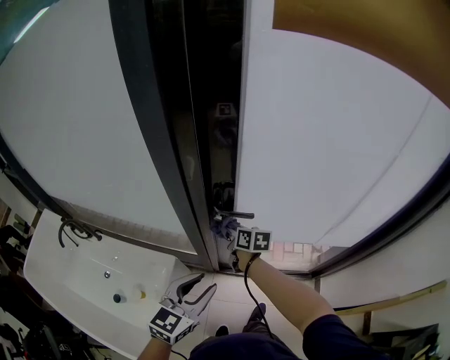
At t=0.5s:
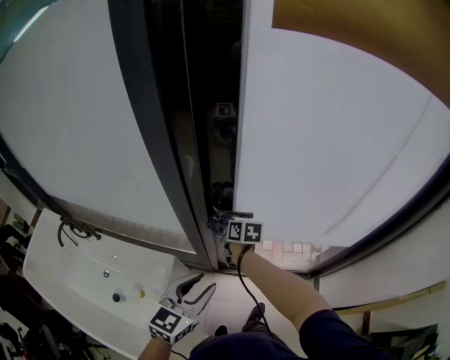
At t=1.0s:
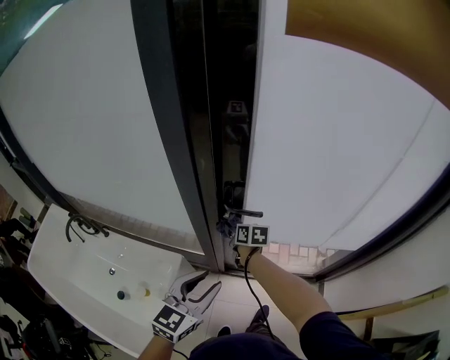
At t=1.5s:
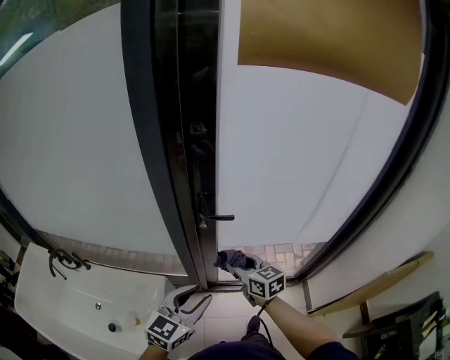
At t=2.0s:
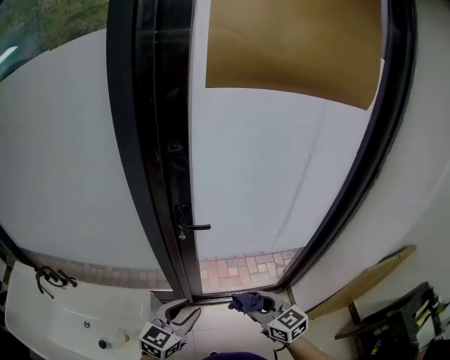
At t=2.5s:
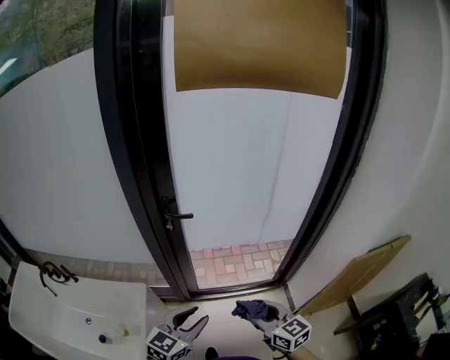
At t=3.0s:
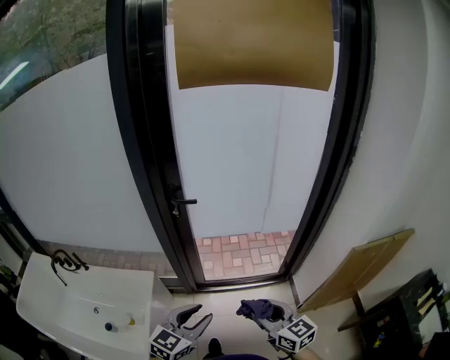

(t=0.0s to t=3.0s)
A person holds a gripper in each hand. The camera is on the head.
t=0.0s - t=1.5s: The left gripper heads backward, covering about 5 cm; the right gripper is displaced backward and upward by approximately 20 cm, and rotates approximately 30 degrees.
t=1.5s - t=3.0s: The left gripper goes about 25 cm backward and to the right. The right gripper moves backward and to the right, roughly 40 cm.

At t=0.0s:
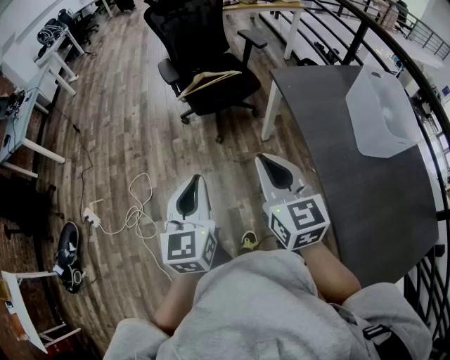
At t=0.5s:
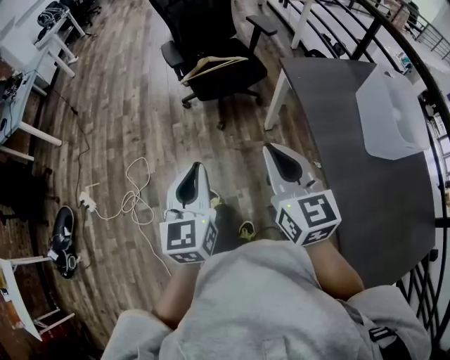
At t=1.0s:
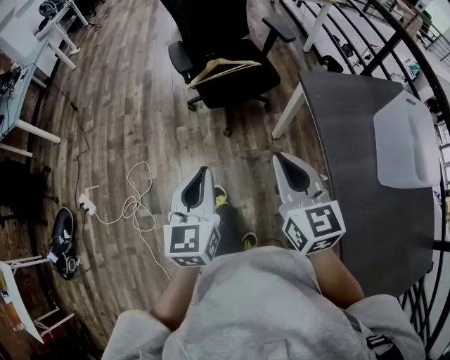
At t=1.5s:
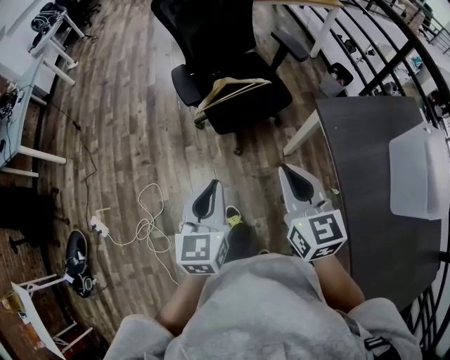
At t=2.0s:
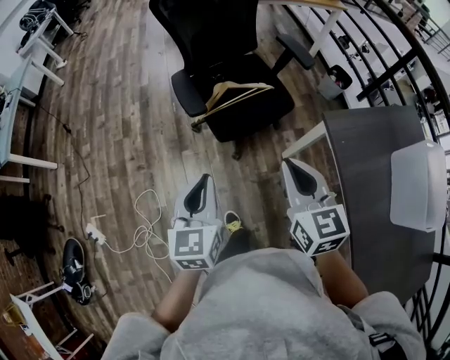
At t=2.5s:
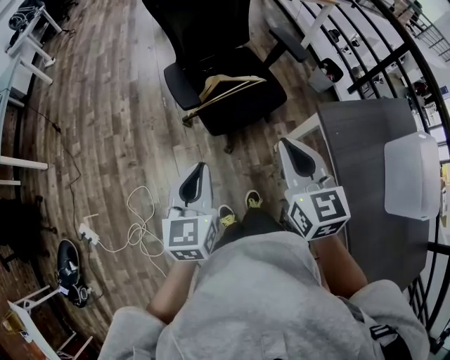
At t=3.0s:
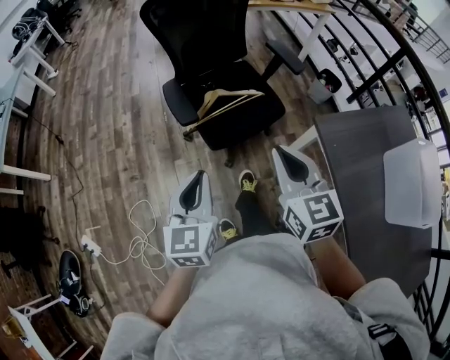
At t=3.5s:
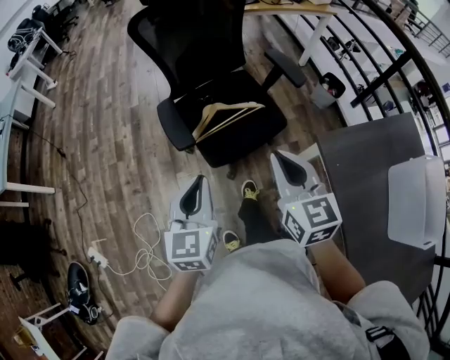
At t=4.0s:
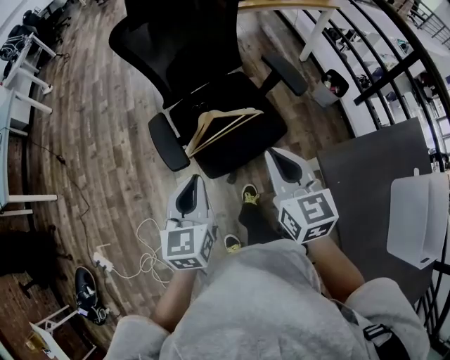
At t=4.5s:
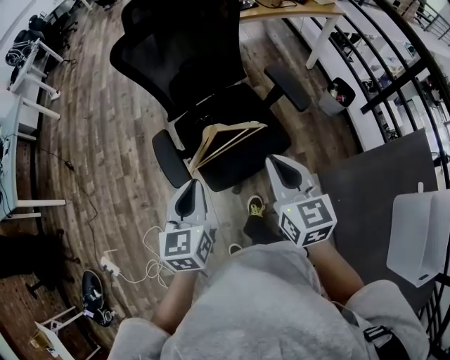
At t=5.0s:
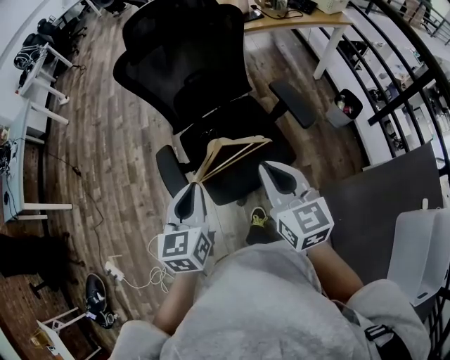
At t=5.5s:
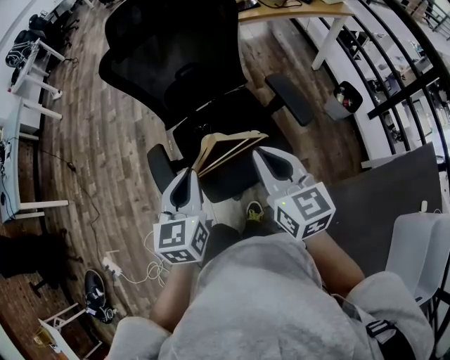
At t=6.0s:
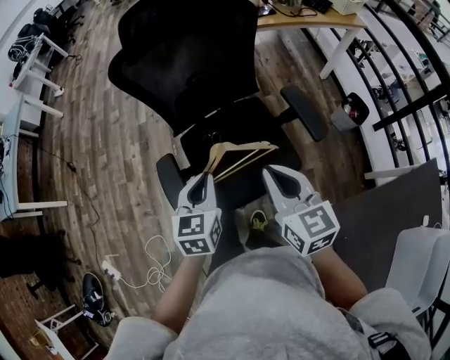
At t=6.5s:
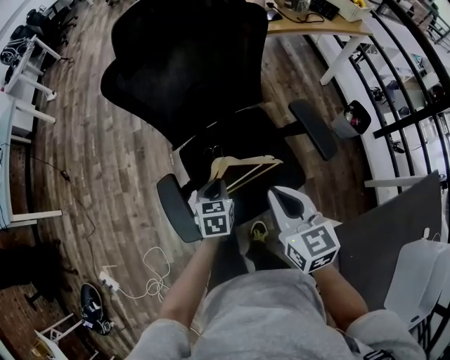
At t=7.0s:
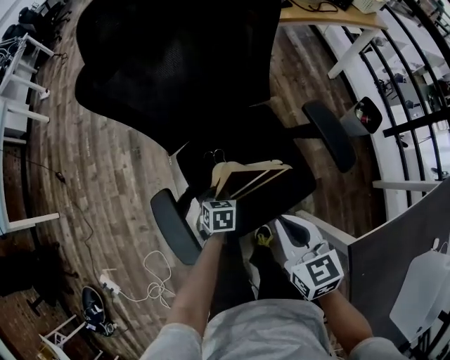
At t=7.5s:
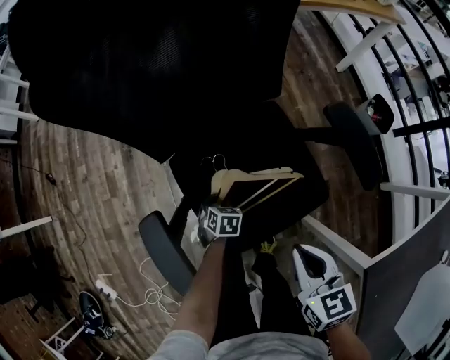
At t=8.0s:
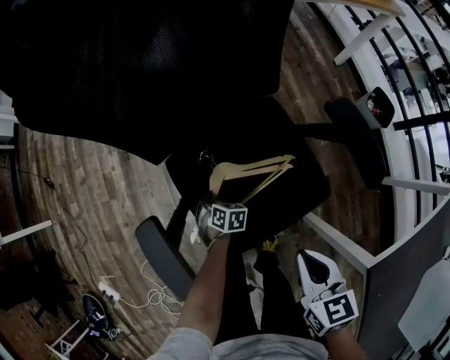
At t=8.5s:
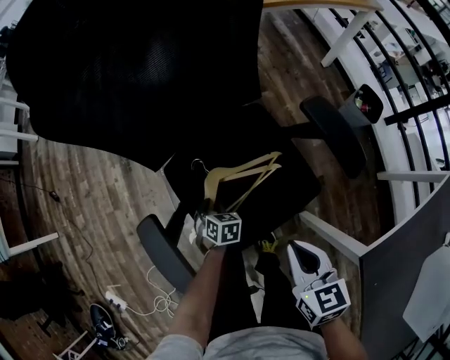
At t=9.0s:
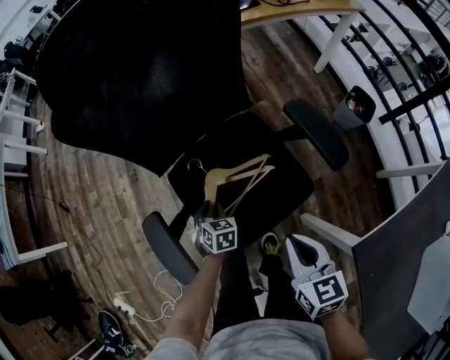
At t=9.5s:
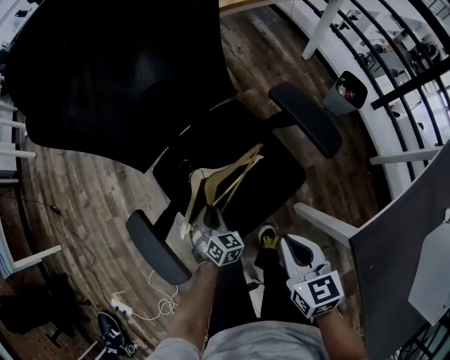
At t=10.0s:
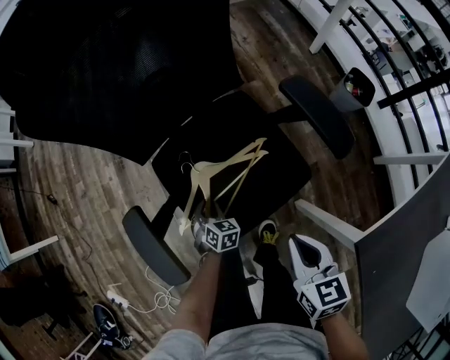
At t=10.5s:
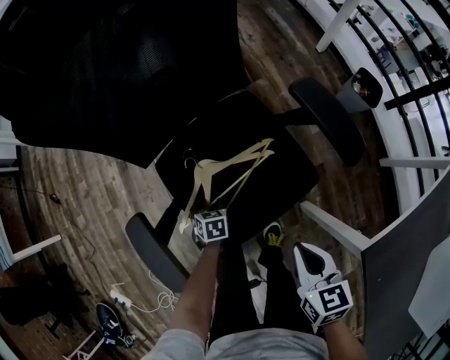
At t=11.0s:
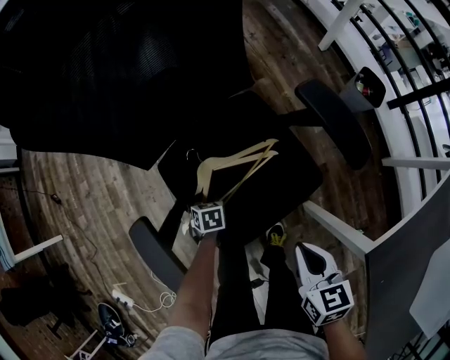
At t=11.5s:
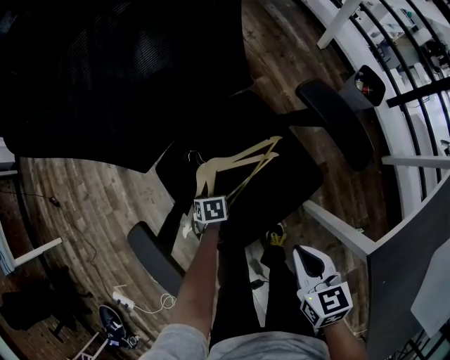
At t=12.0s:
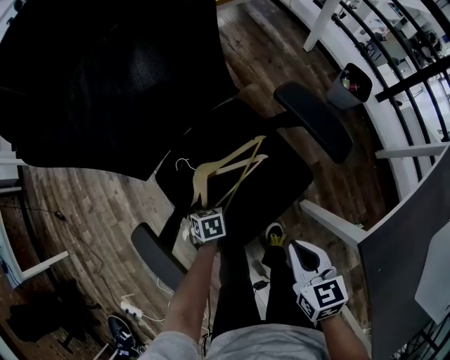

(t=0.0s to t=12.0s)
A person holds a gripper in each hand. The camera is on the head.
t=0.0s - t=2.0s: The grippers both shift forward by roughly 40 cm.
t=2.0s - t=4.0s: Both grippers move forward, approximately 20 cm.
t=4.0s - t=6.0s: Both grippers travel together forward, about 15 cm.
t=6.0s - t=8.0s: The left gripper moves downward, roughly 50 cm, and tips its fingers downward by approximately 40 degrees. Meanwhile the right gripper moves downward, about 25 cm, and swivels about 30 degrees.
t=8.0s - t=10.0s: The grippers both shift backward by about 5 cm. The left gripper travels upward and back again, some 15 cm each way.
t=10.0s - t=12.0s: The left gripper opens, then closes again.

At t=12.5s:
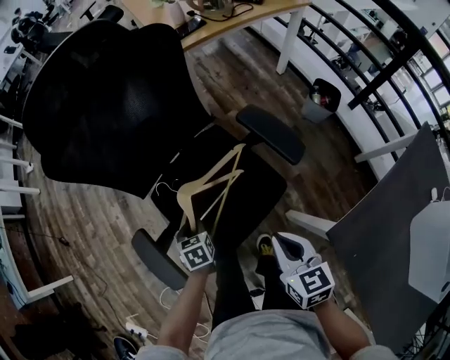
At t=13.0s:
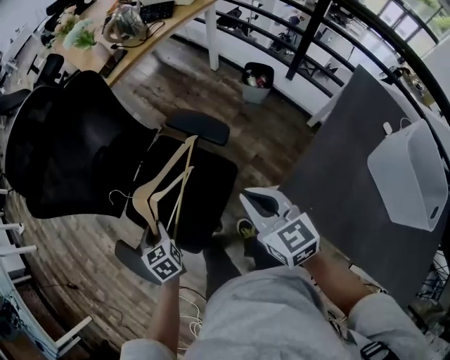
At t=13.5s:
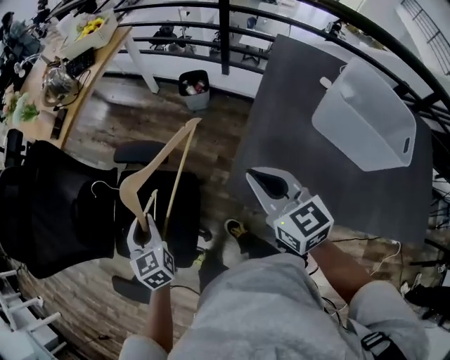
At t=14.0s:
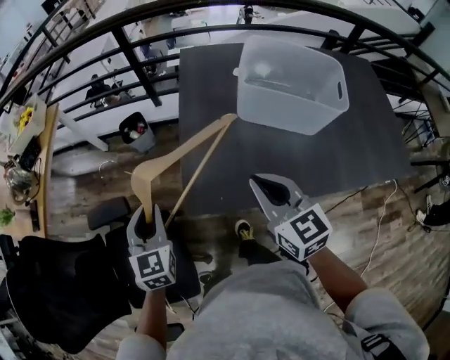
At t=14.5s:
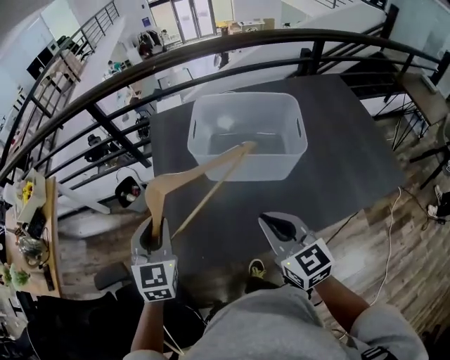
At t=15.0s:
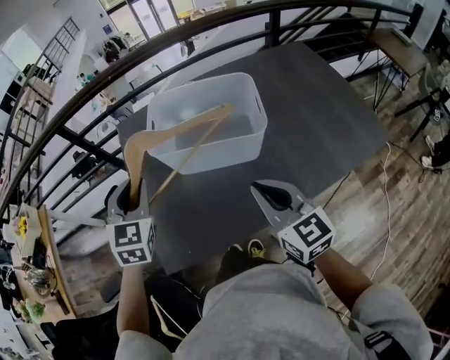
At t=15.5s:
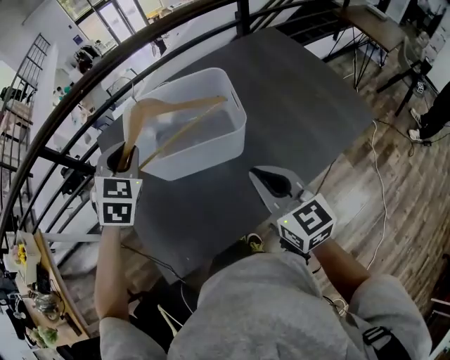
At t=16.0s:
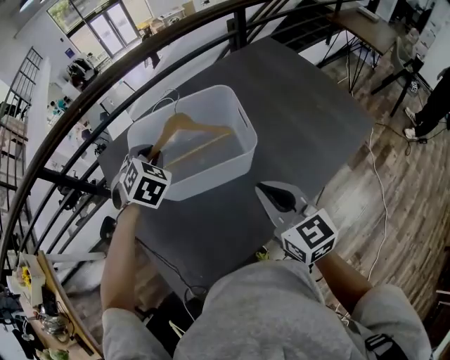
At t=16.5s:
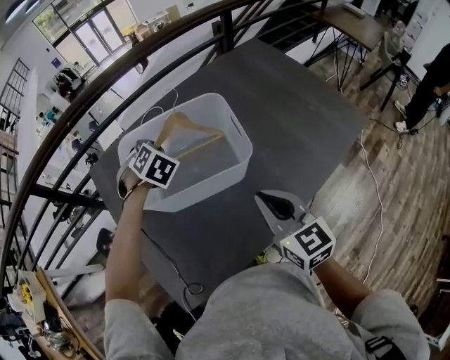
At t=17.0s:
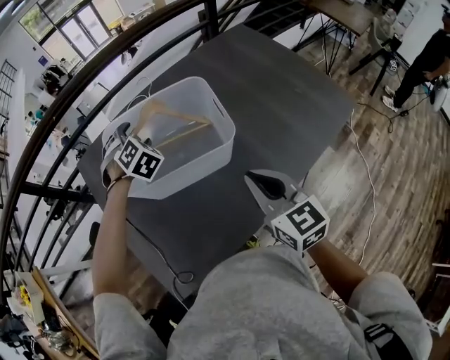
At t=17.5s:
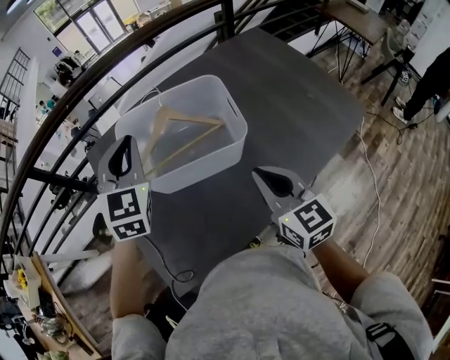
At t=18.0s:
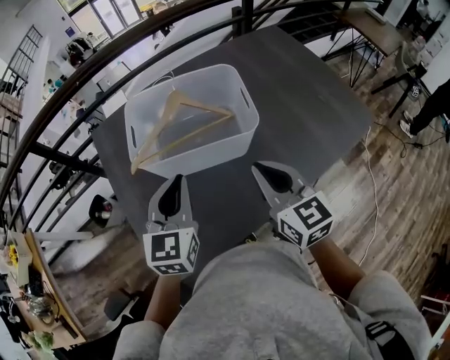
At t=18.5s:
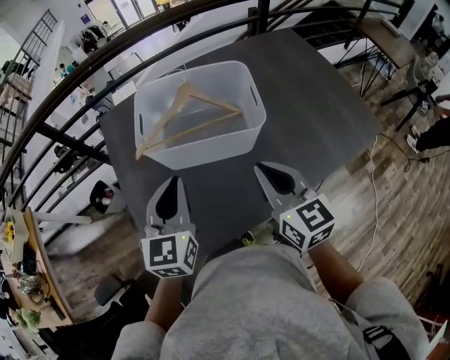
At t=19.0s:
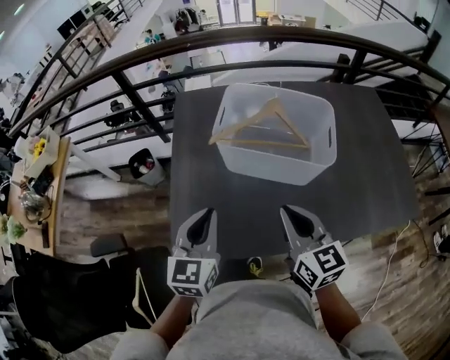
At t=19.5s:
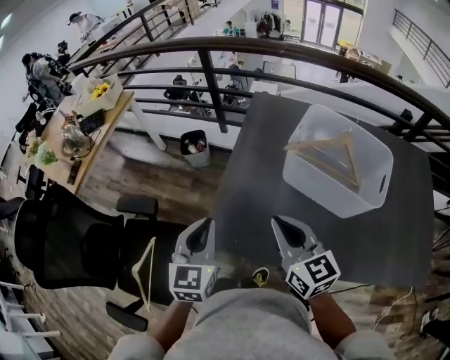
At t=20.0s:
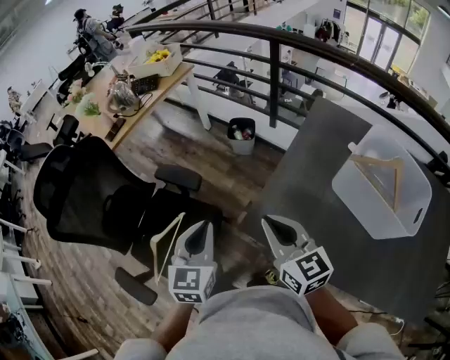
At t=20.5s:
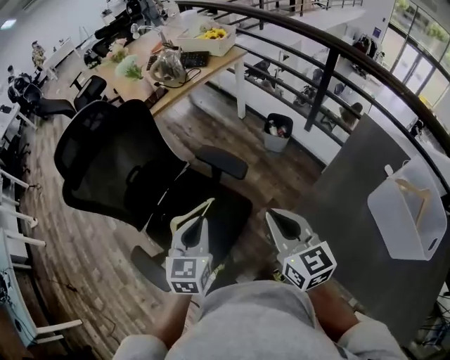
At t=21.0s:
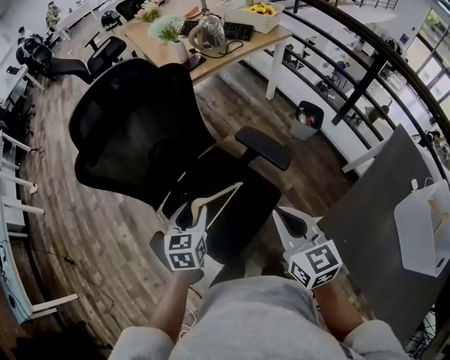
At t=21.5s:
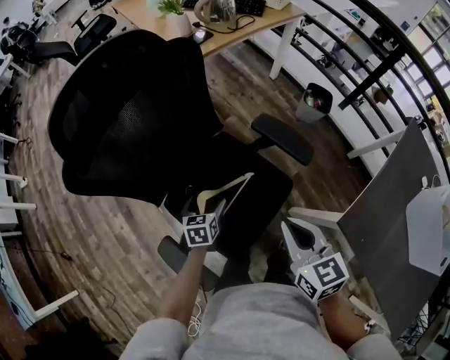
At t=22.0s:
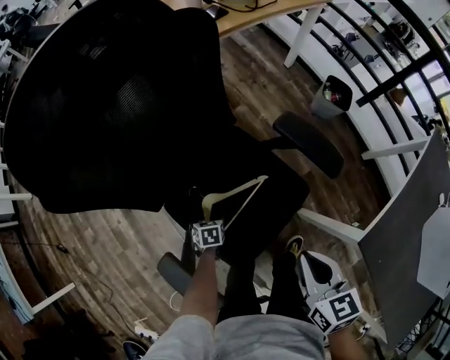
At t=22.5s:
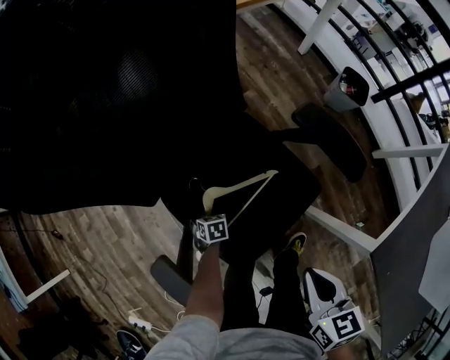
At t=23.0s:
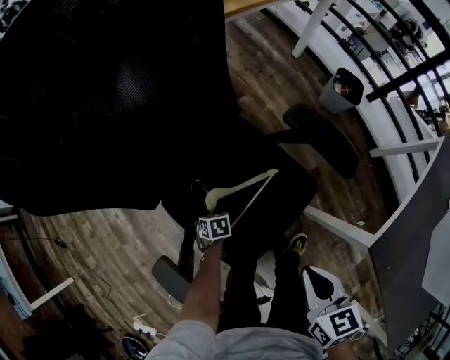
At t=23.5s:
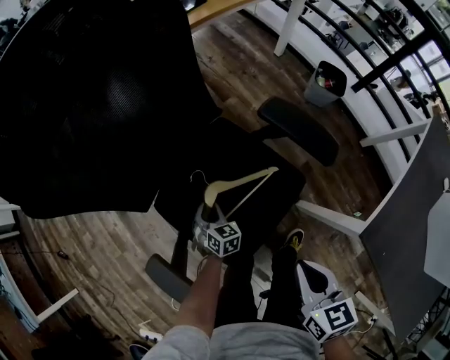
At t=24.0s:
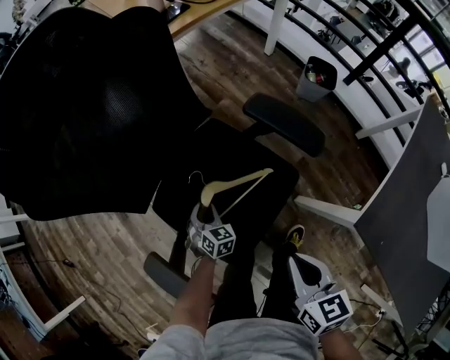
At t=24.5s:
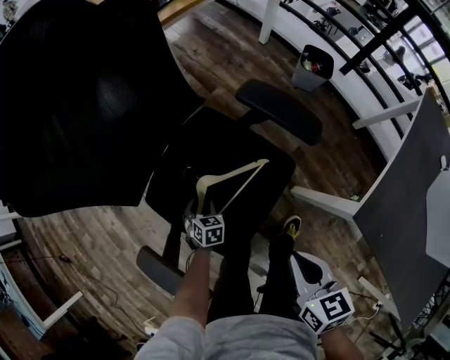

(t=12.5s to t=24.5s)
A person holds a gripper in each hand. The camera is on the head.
t=12.5s - t=14.5s: The pair of grippers is taken about 60 cm. The right gripper rotates approximately 70 degrees. The left gripper angles its fingers upward, by some 40 degrees.
t=14.5s - t=16.5s: The right gripper travels to the right and forward by some 15 cm, and swivels roughly 30 degrees. The left gripper shifts roughly 40 cm forward and to the right, and tilts its fingers about 30 degrees downward.
t=16.5s - t=18.5s: The left gripper is displaced backward by about 25 cm, tilts its fingers roughly 40 degrees upward, and opens and closes again.
t=18.5s - t=20.5s: The pair of grippers is taken about 60 cm. The left gripper rotates approximately 70 degrees. The right gripper swivels about 70 degrees.
t=20.5s - t=22.5s: The left gripper moves downward and to the left, roughly 60 cm, tips its fingers downward by approximately 50 degrees, and opens its fingers, while the right gripper is displaced downward and to the left by about 35 cm, and angles its fingers downward, by some 30 degrees.
t=22.5s - t=24.5s: The right gripper shifts by some 5 cm, while the left gripper heads upward, covering roughly 5 cm, changes its angle by some 20 degrees, and closes its fingers.
